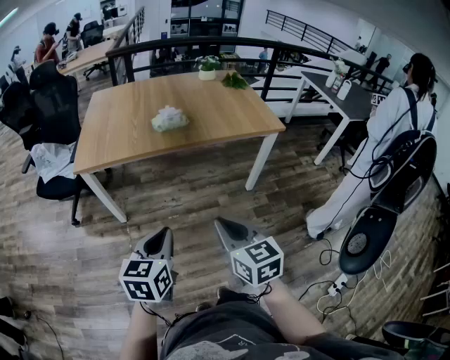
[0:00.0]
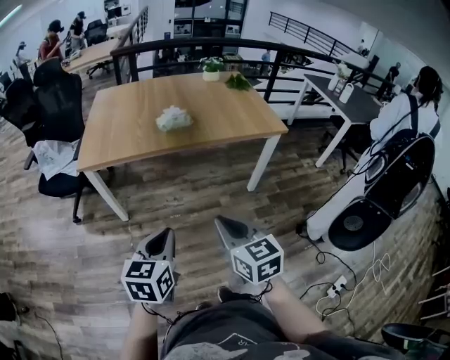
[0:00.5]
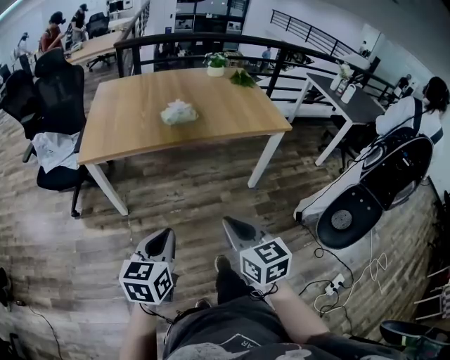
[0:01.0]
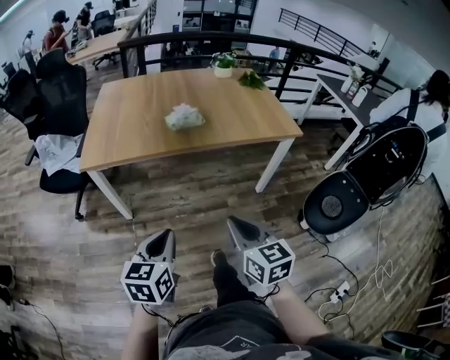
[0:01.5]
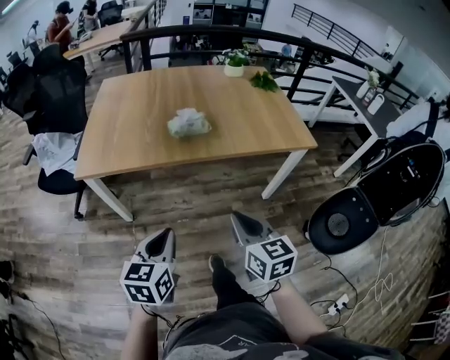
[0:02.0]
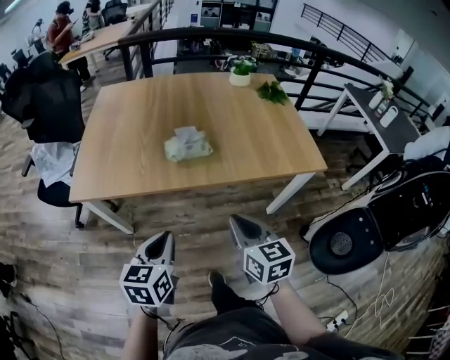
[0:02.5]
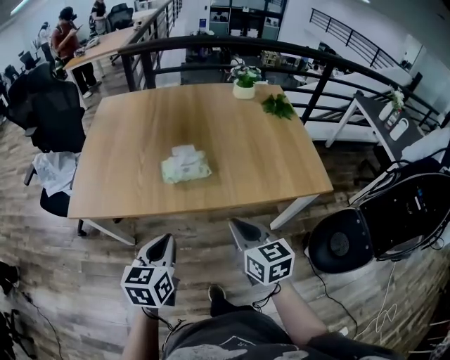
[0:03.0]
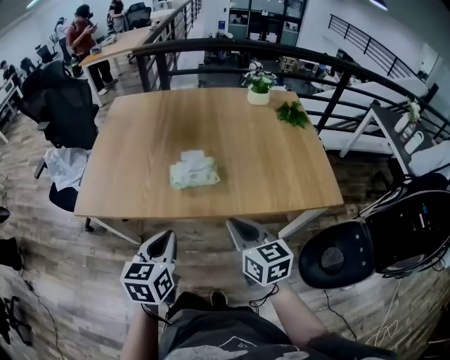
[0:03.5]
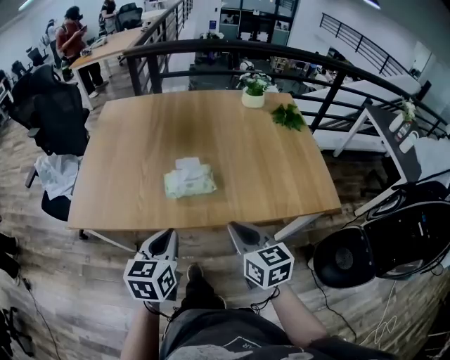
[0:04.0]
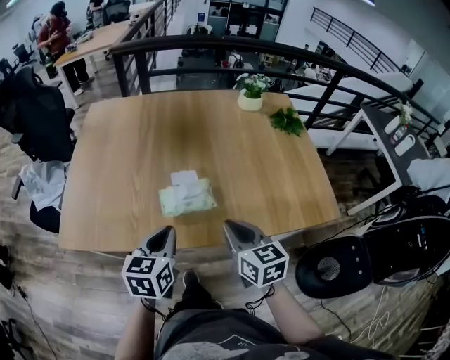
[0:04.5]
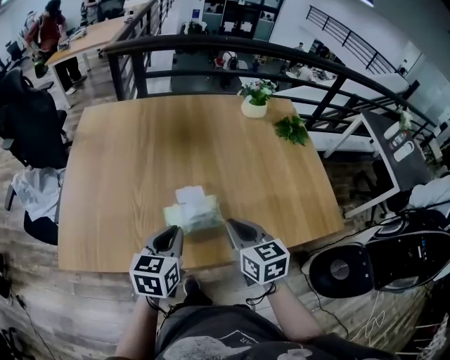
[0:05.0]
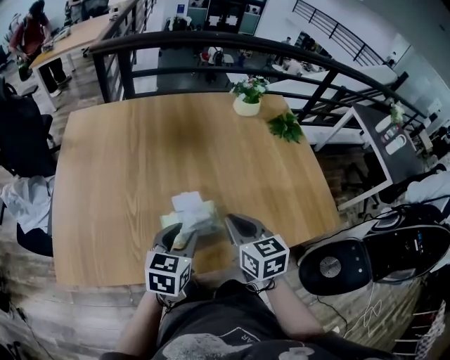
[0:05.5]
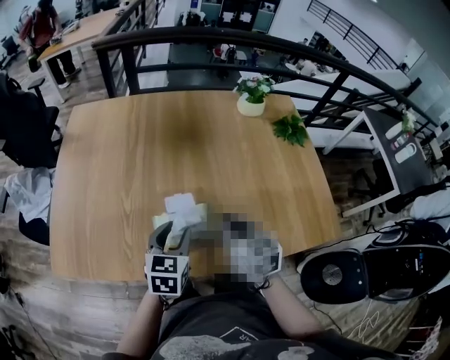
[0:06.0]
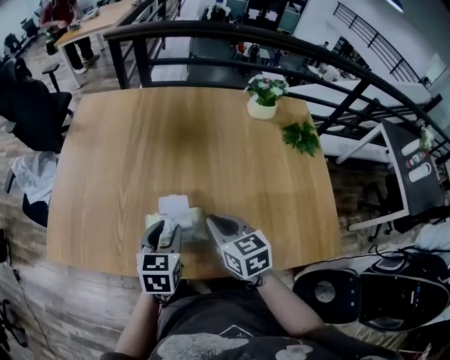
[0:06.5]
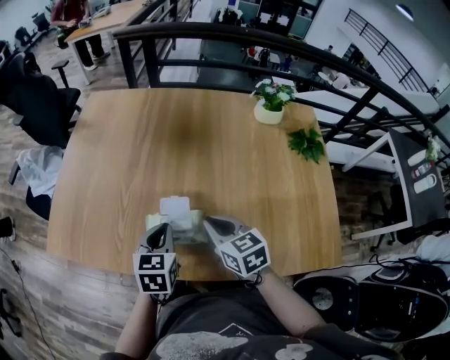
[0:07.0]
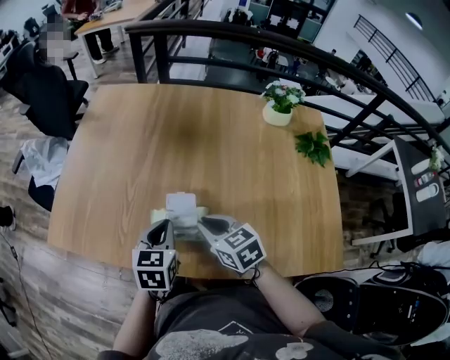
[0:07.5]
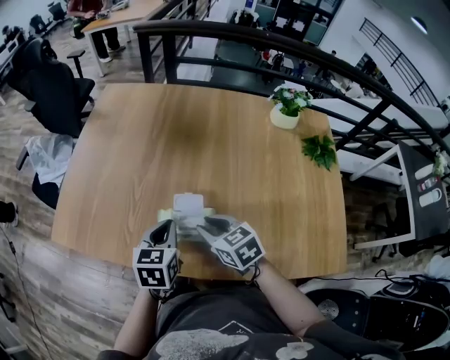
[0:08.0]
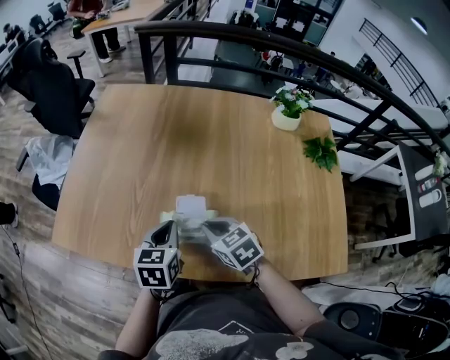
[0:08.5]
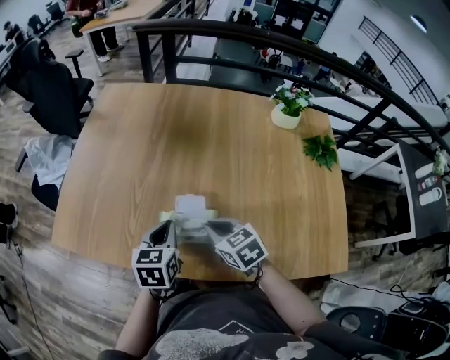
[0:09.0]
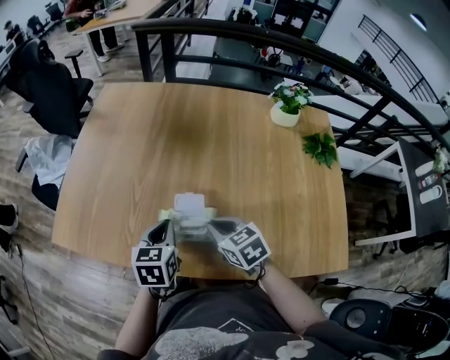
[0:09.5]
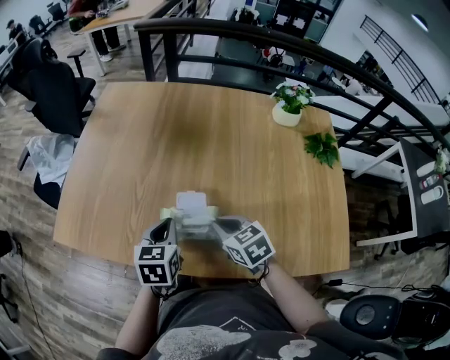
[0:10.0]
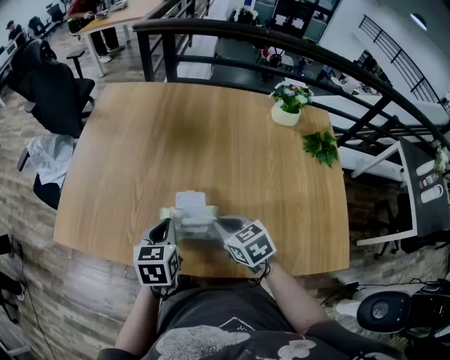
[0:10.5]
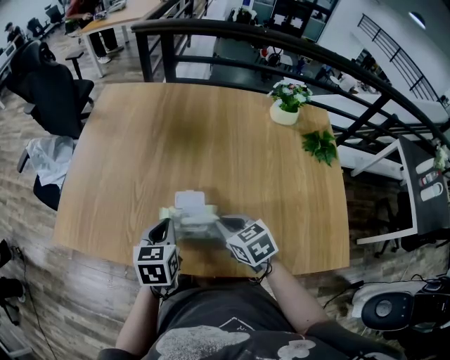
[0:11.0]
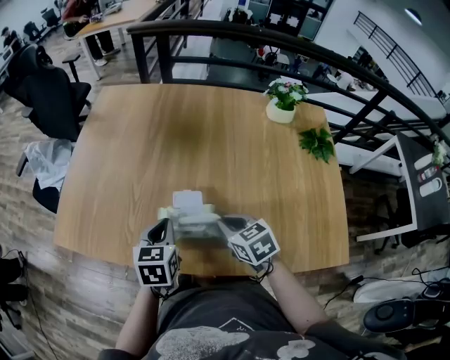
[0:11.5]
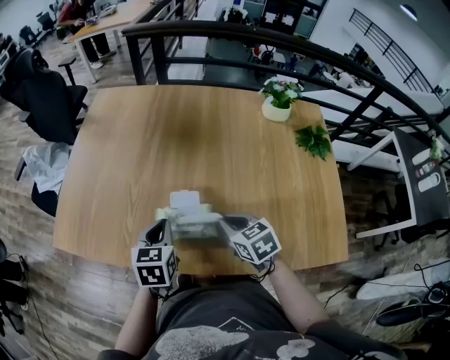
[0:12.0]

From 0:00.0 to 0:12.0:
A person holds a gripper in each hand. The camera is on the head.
From 0:00.0 to 0:02.0: Both grippers move forward, about 15 cm.
From 0:02.0 to 0:04.0: Both grippers move forward, about 25 cm.
From 0:04.0 to 0:06.0: Both grippers travel together forward, roughly 20 cm. The left gripper opens.
From 0:06.0 to 0:08.0: The left gripper closes up. Meanwhile the right gripper ends up roughly 10 cm from where it was, and swivels approximately 30 degrees.
From 0:08.0 to 0:10.0: The grippers make only small movements.
From 0:10.0 to 0:12.0: The grippers make only small movements.

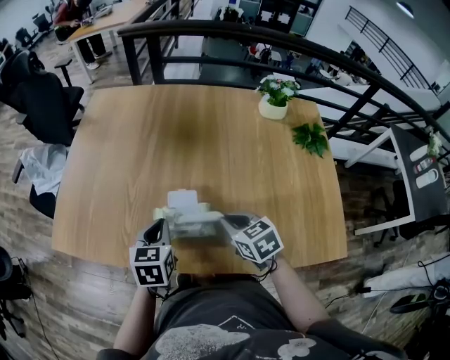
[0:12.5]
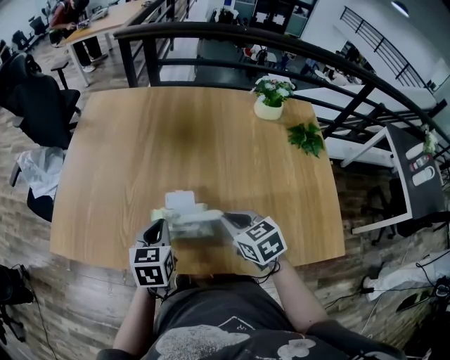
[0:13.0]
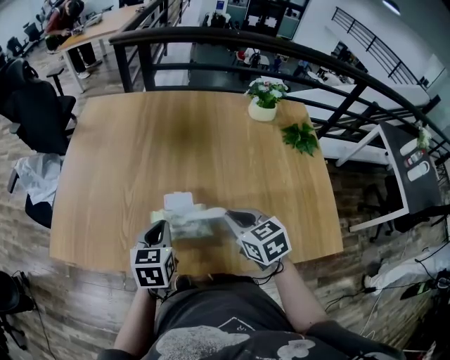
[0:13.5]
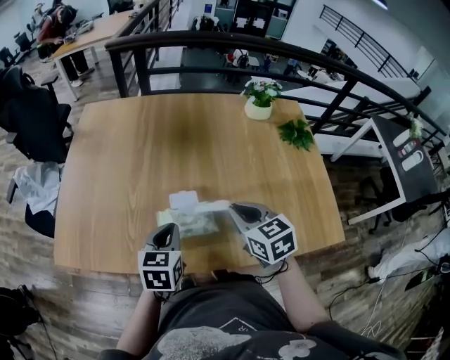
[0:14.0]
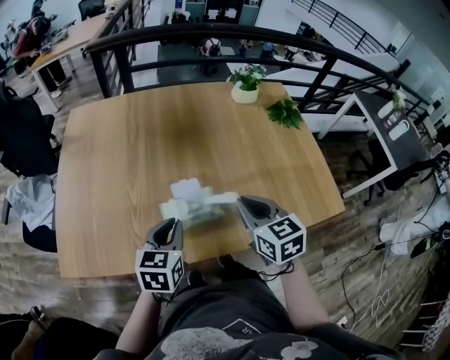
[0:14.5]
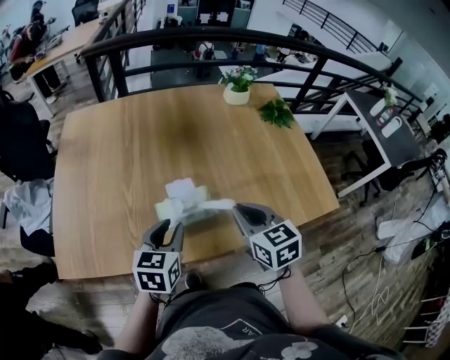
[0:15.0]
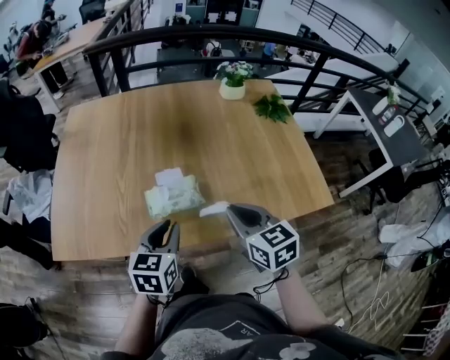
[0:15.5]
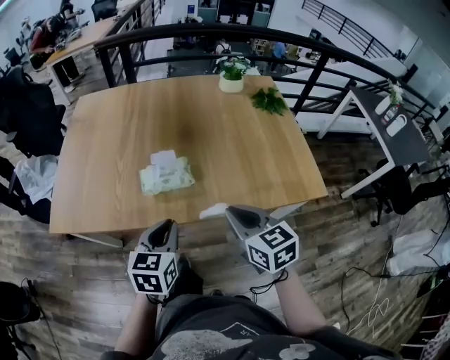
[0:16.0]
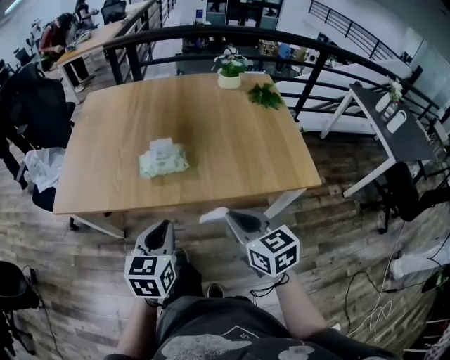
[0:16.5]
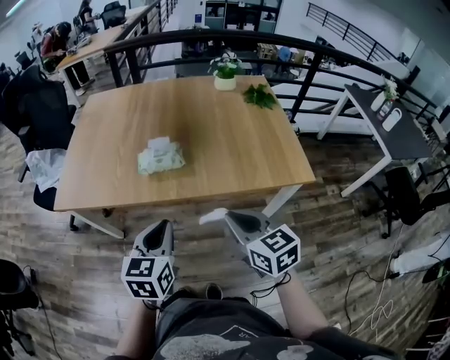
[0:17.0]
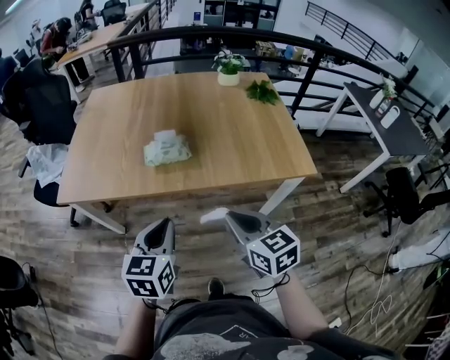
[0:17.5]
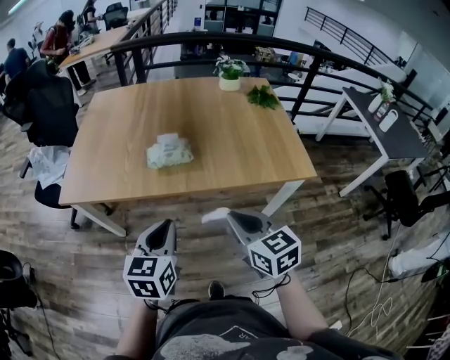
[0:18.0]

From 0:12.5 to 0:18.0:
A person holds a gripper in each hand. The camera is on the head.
From 0:12.5 to 0:14.5: The right gripper travels upward by roughly 10 cm, and rotates roughly 30 degrees. The left gripper changes place by roughly 5 cm, and rotates about 20 degrees.
From 0:14.5 to 0:16.0: The left gripper travels backward and to the right by approximately 15 cm; the right gripper shifts about 15 cm backward.
From 0:16.0 to 0:18.0: Both grippers travel together backward, about 15 cm.

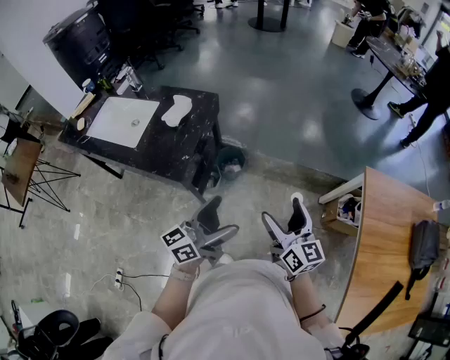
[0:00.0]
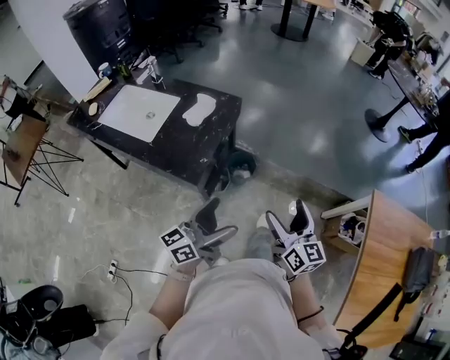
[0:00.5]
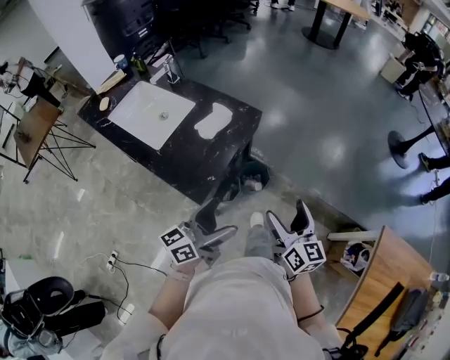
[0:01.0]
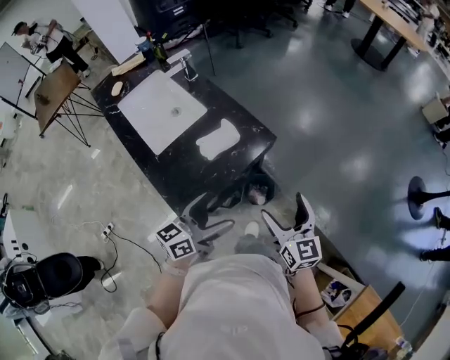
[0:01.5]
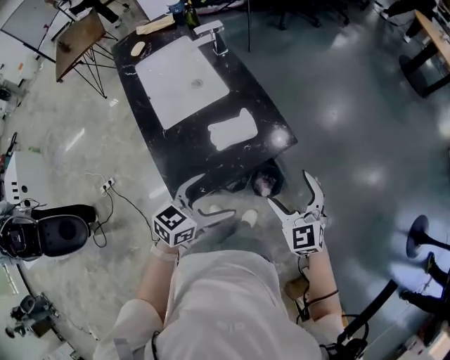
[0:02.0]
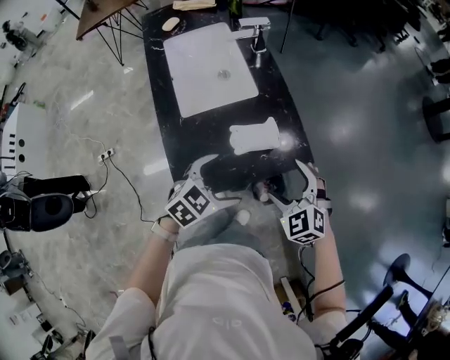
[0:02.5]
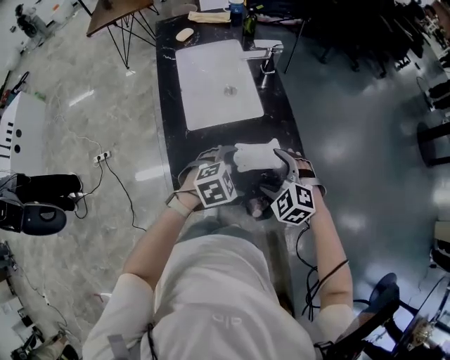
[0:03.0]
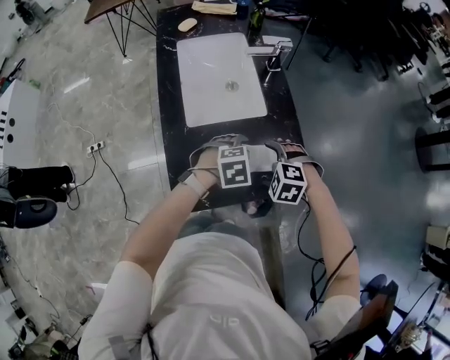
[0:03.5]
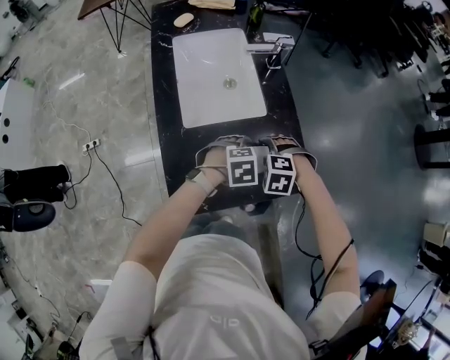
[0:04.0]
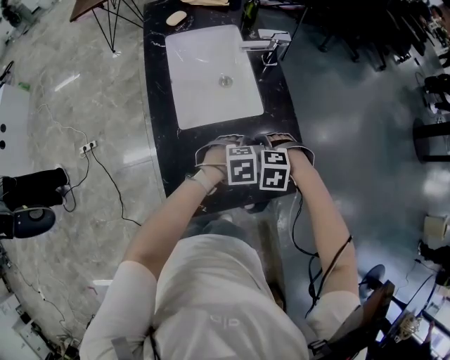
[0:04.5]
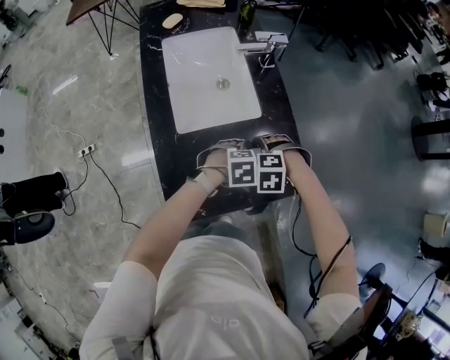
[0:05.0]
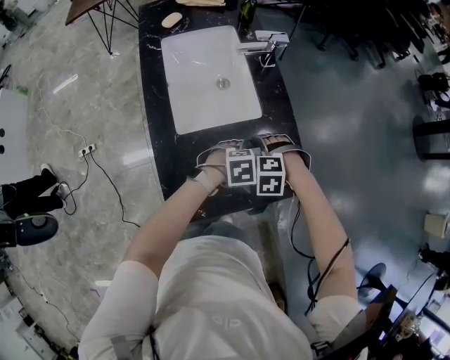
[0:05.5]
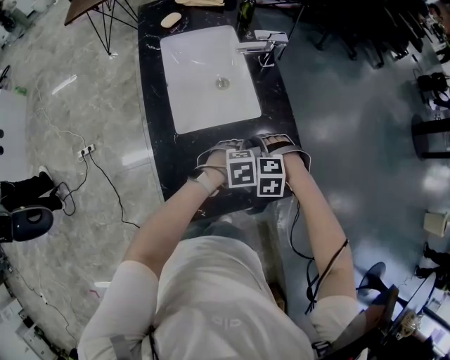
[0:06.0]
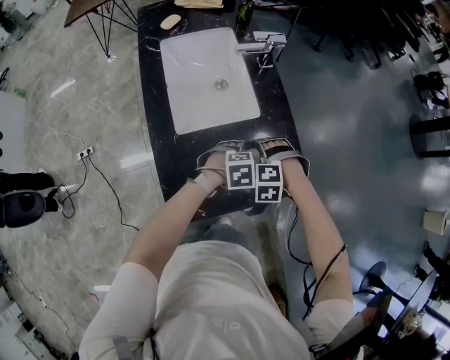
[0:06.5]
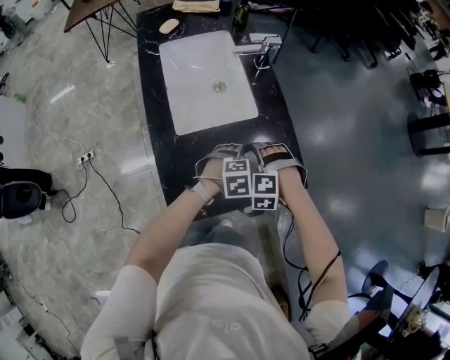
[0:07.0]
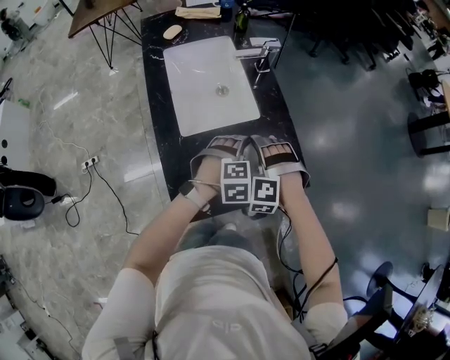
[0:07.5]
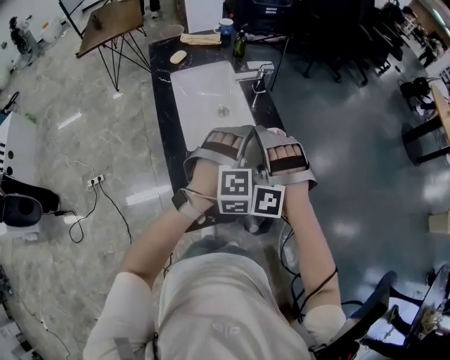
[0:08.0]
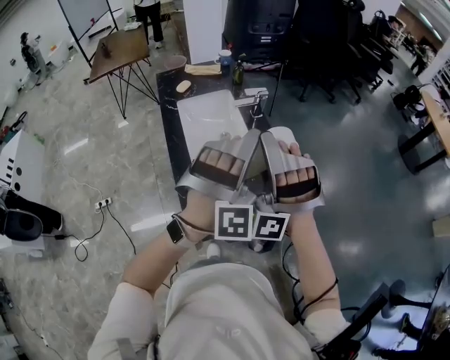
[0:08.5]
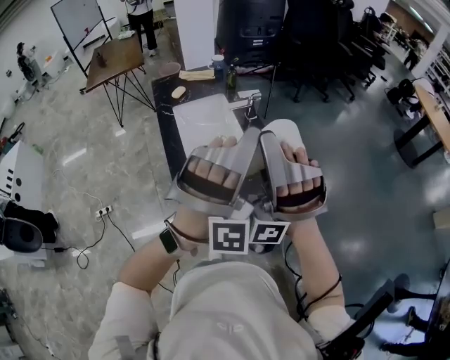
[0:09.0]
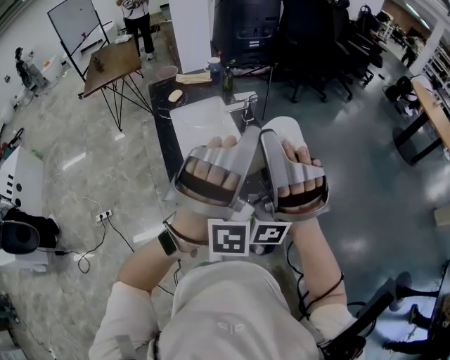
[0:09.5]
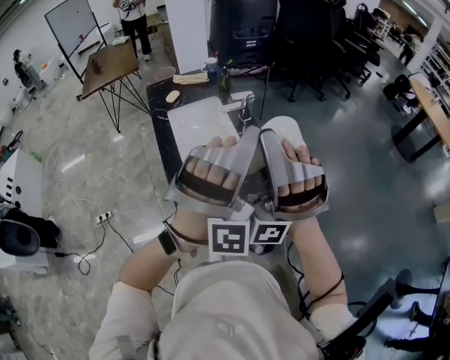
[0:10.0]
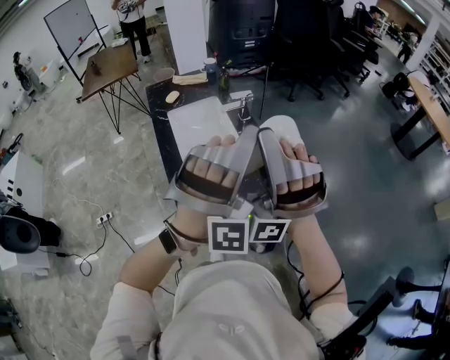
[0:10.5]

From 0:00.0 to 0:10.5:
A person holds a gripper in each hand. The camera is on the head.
From 0:00.0 to 0:02.0: The left gripper ends up some 40 cm from where it was, and tips its fingers downward by some 30 degrees.
From 0:02.0 to 0:04.0: The left gripper ends up approximately 20 cm from where it was, and tilts its fingers roughly 40 degrees downward.
From 0:06.5 to 0:08.5: The left gripper heads upward, covering roughly 40 cm, and tips its fingers upward by approximately 40 degrees.
From 0:08.5 to 0:10.5: The left gripper is displaced upward by some 10 cm.
